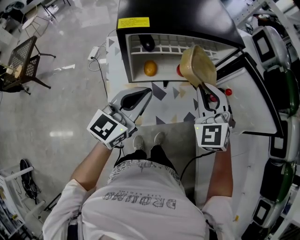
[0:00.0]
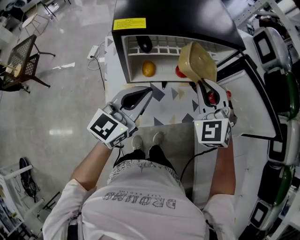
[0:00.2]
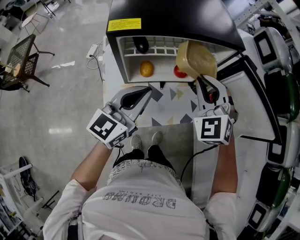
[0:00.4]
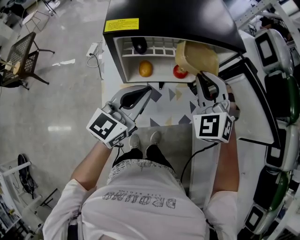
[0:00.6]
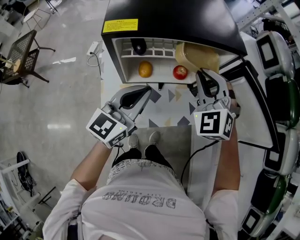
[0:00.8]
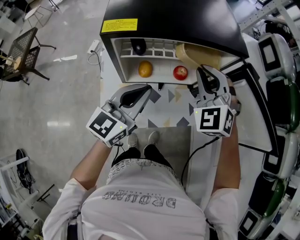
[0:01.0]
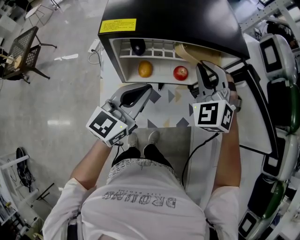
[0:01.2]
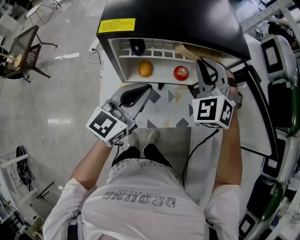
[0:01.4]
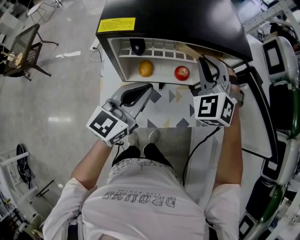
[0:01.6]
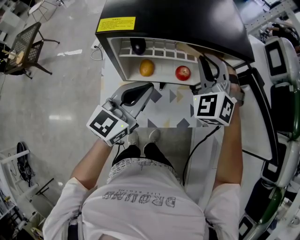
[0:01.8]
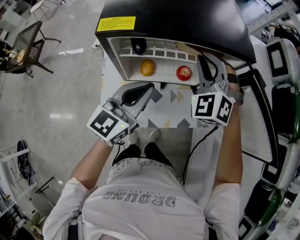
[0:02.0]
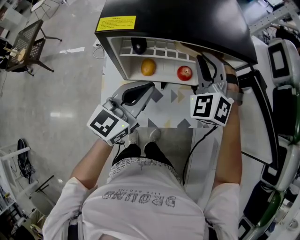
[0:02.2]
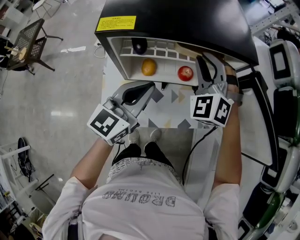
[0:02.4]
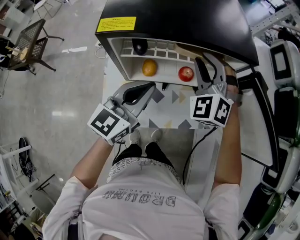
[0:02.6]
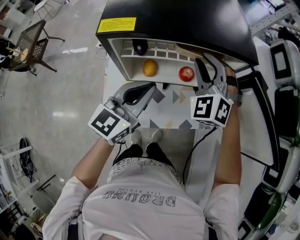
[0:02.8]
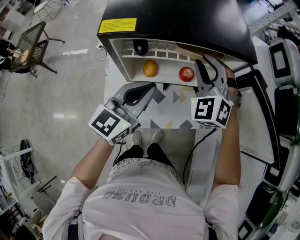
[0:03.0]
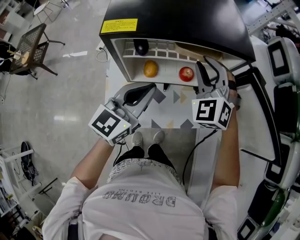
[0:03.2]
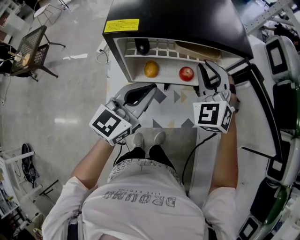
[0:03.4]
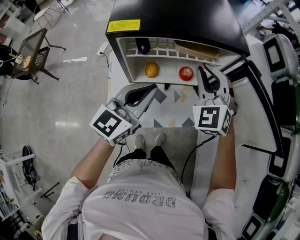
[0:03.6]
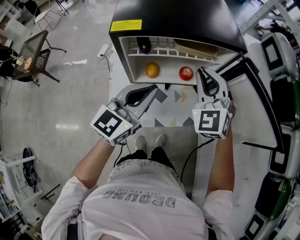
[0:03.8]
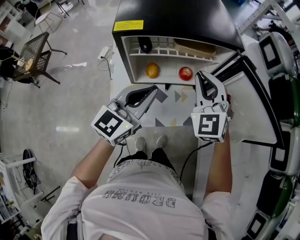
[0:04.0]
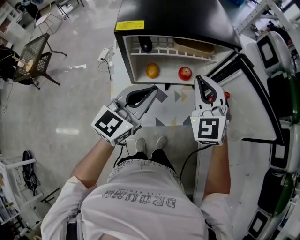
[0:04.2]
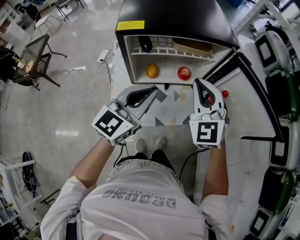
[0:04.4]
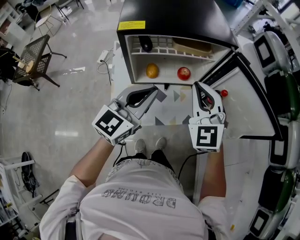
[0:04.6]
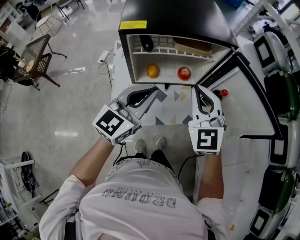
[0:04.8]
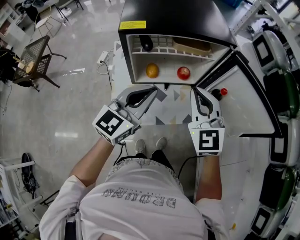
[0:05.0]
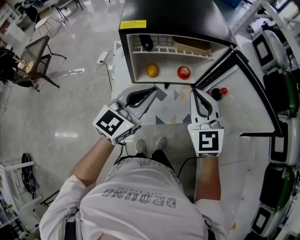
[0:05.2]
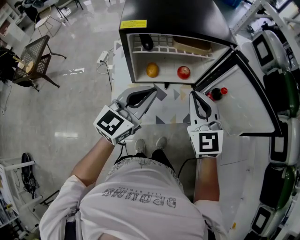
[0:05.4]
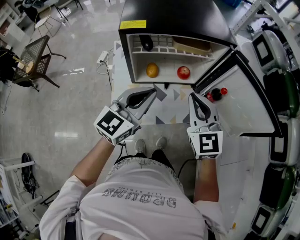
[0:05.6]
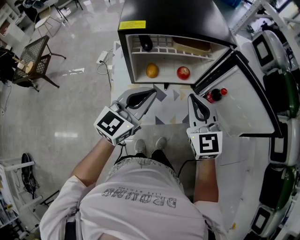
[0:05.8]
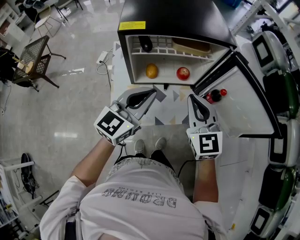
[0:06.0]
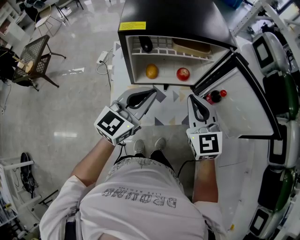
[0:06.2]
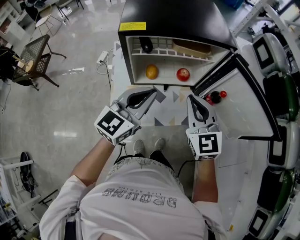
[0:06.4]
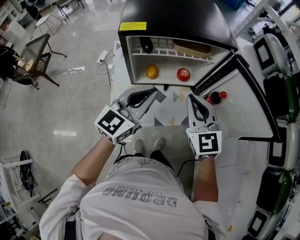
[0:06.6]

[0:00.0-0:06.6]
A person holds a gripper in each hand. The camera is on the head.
0:00.0 to 0:01.6: The left gripper heads forward, covering roughly 5 cm. Meanwhile the right gripper goes some 15 cm forward.
0:01.6 to 0:03.2: The grippers move only a little.
0:03.2 to 0:05.0: The left gripper goes approximately 10 cm backward, while the right gripper travels backward by some 15 cm, turns by roughly 30 degrees, and closes.
0:05.0 to 0:06.6: The grippers make only small movements.

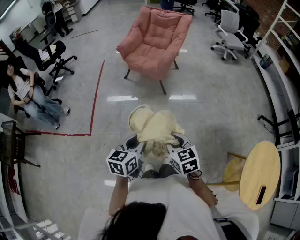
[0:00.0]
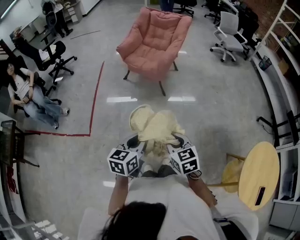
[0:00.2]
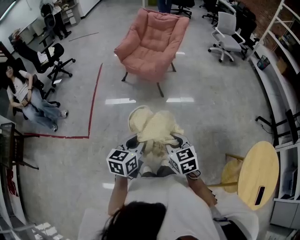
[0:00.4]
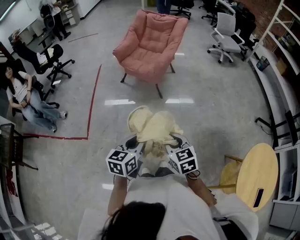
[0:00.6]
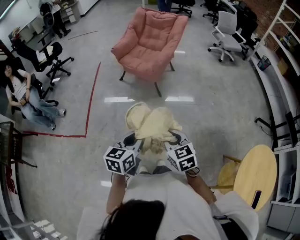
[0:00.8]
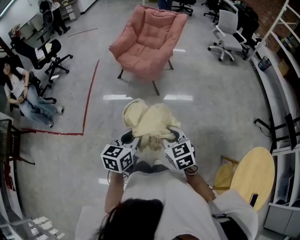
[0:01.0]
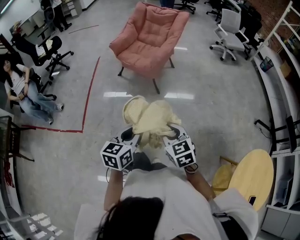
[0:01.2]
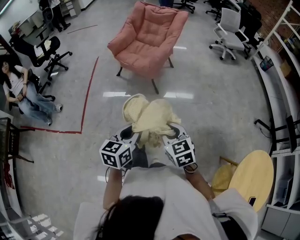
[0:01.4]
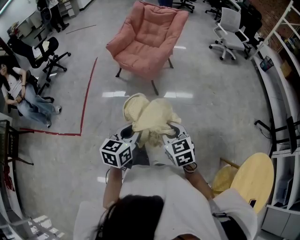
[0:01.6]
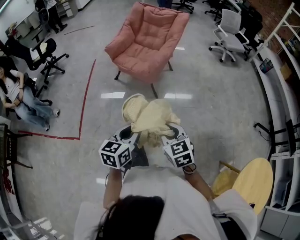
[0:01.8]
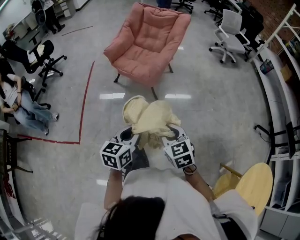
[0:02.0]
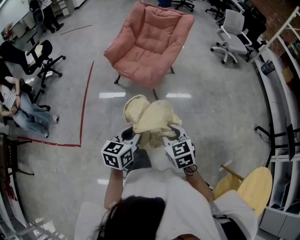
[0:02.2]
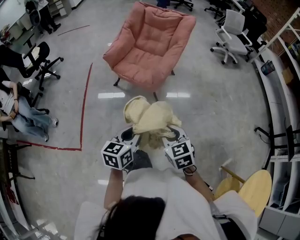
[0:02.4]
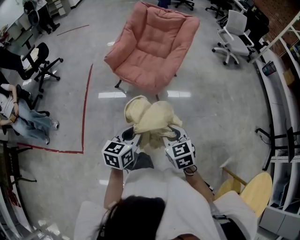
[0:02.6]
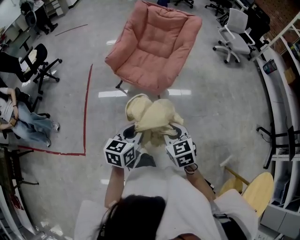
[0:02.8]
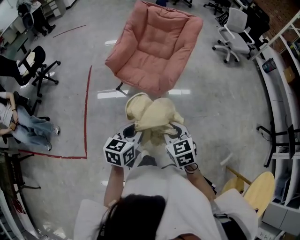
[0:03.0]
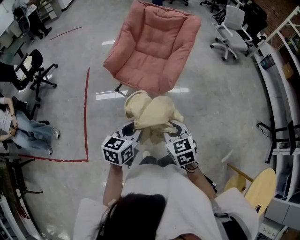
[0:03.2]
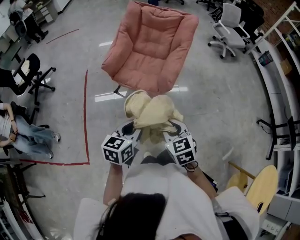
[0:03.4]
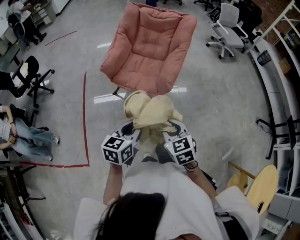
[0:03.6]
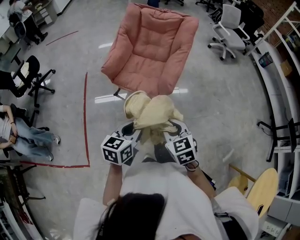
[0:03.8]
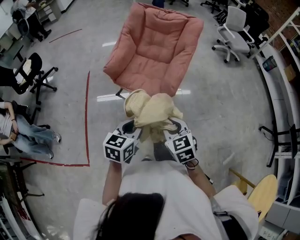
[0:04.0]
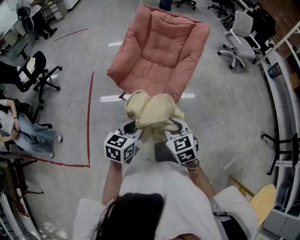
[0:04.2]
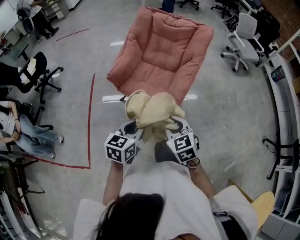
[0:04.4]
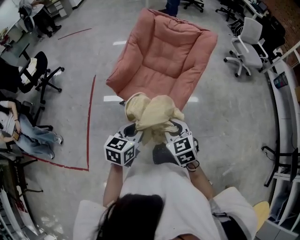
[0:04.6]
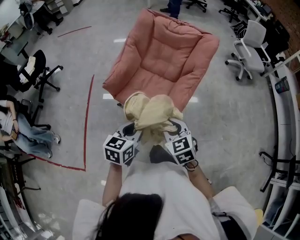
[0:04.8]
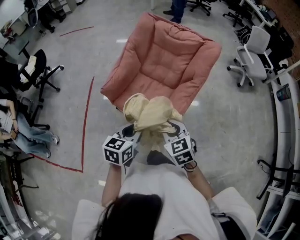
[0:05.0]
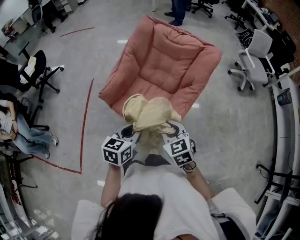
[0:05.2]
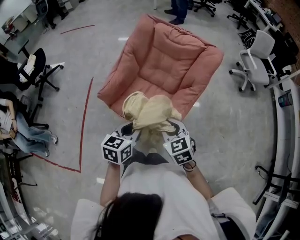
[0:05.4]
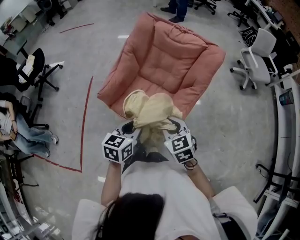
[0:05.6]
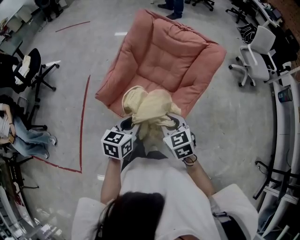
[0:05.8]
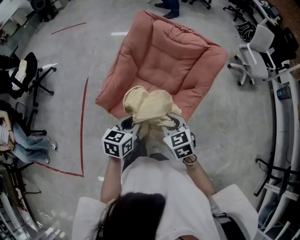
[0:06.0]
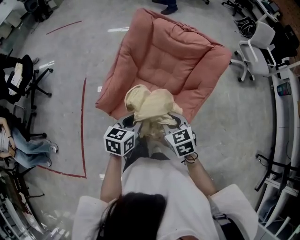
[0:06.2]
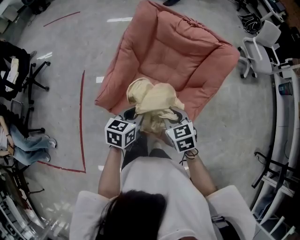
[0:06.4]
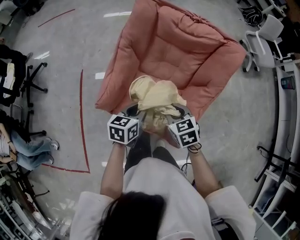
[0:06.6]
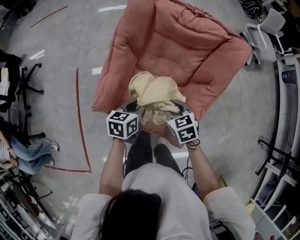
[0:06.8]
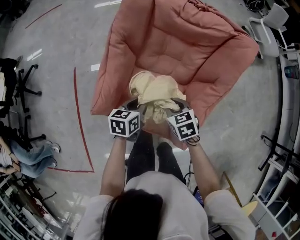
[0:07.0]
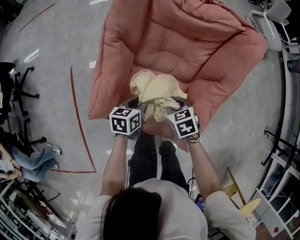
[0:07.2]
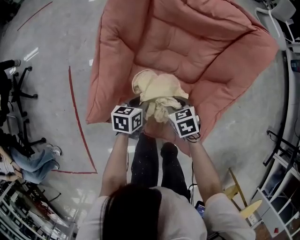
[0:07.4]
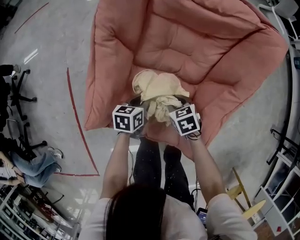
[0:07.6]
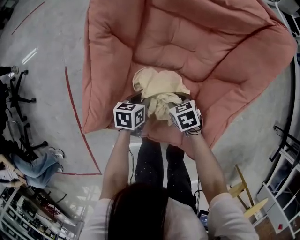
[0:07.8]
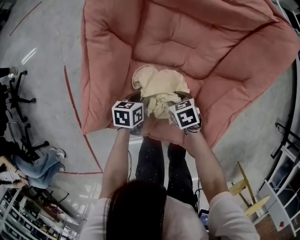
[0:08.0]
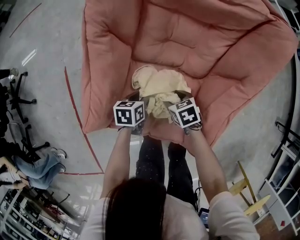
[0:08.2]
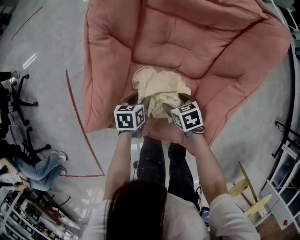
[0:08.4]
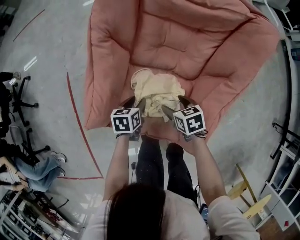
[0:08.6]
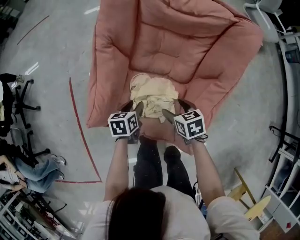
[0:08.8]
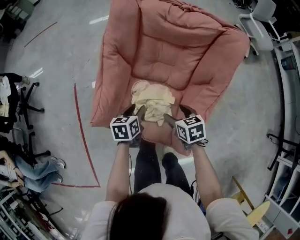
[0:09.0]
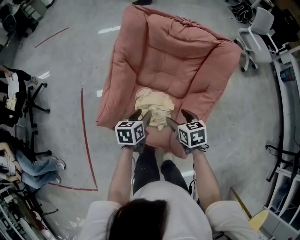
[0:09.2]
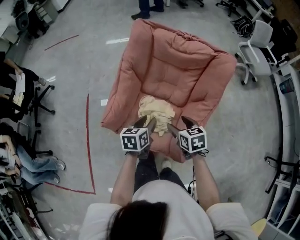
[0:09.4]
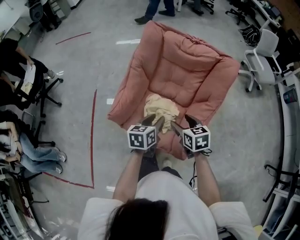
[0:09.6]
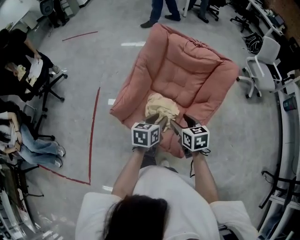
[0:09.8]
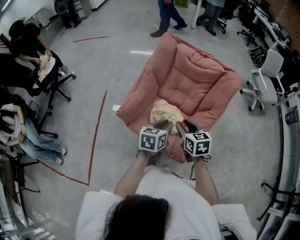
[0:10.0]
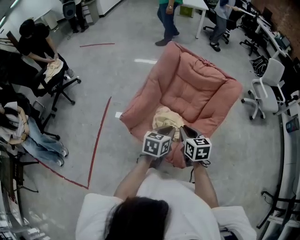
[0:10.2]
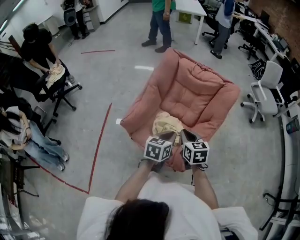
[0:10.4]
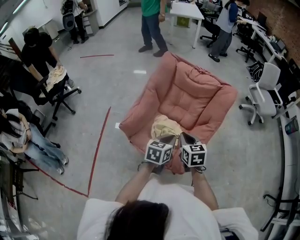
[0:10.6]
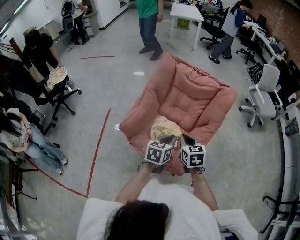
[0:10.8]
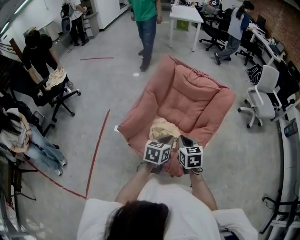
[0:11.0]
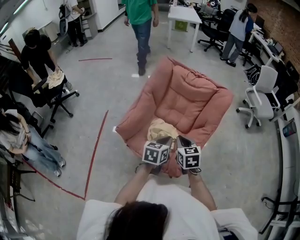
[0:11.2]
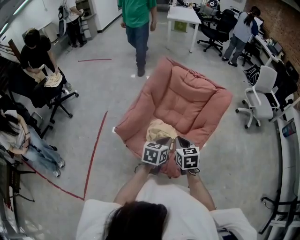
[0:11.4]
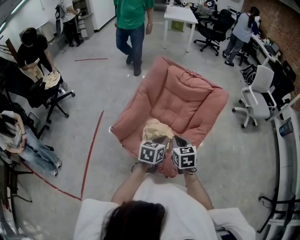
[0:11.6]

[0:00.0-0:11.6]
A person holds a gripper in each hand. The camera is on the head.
0:00.0 to 0:01.4: The right gripper is displaced forward and to the right by about 10 cm, while the left gripper goes about 10 cm to the right and forward.
0:01.4 to 0:02.8: Both grippers travel together forward and to the left, approximately 30 cm.
0:02.8 to 0:04.4: The two grippers go some 20 cm forward.
0:04.4 to 0:05.8: The grippers both shift forward by approximately 25 cm.
0:05.8 to 0:07.2: Both grippers move downward and forward, approximately 35 cm. The left gripper changes its angle by roughly 20 degrees. The right gripper rotates approximately 30 degrees.
0:07.2 to 0:08.8: The right gripper travels downward and back again, roughly 15 cm each way, and opens. The left gripper reaches some 15 cm downward, then returns, and opens.
0:08.8 to 0:10.2: The grippers both shift upward and backward by about 30 cm. The left gripper rotates about 20 degrees, and closes, while the right gripper swivels approximately 30 degrees, and closes.
0:10.2 to 0:11.6: The grippers move only a little.

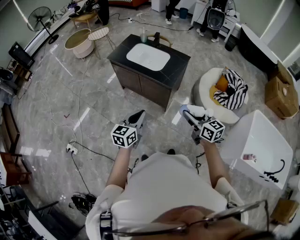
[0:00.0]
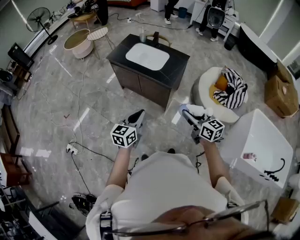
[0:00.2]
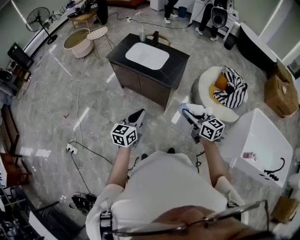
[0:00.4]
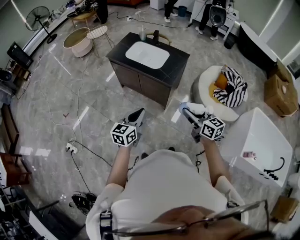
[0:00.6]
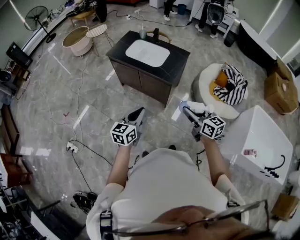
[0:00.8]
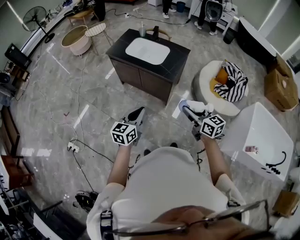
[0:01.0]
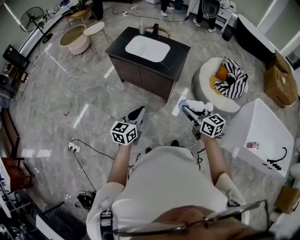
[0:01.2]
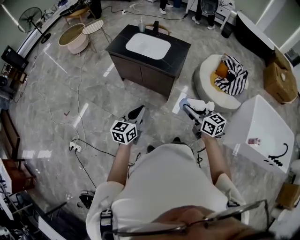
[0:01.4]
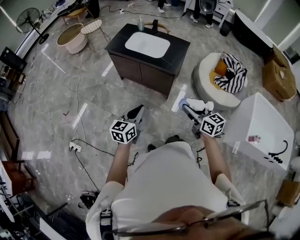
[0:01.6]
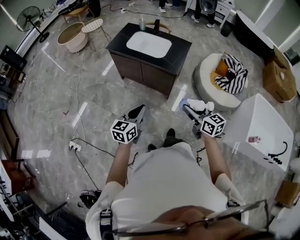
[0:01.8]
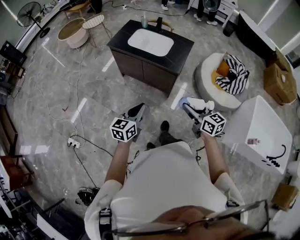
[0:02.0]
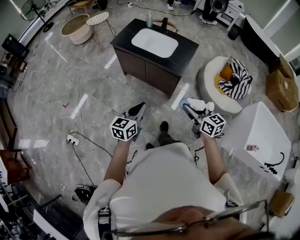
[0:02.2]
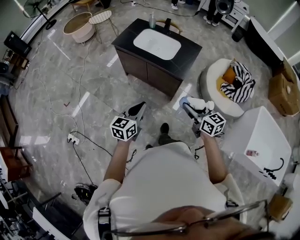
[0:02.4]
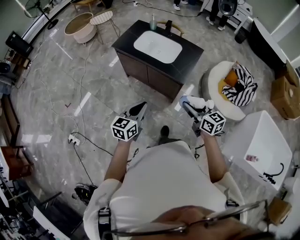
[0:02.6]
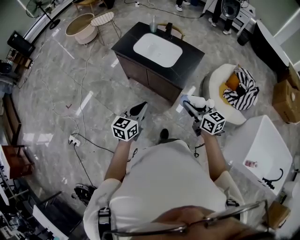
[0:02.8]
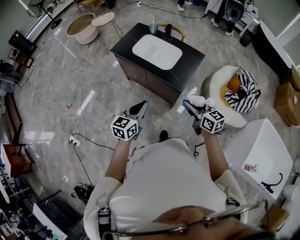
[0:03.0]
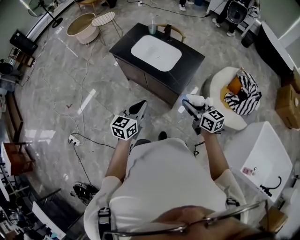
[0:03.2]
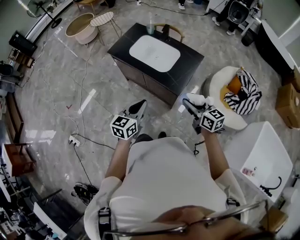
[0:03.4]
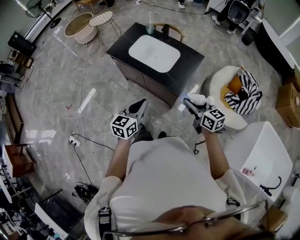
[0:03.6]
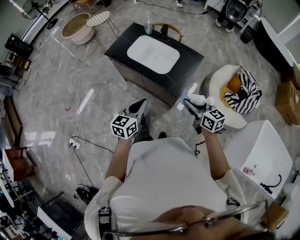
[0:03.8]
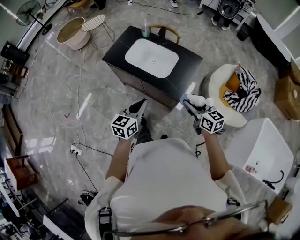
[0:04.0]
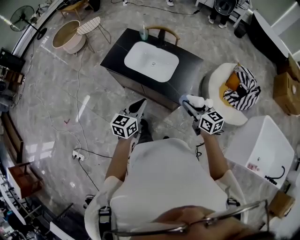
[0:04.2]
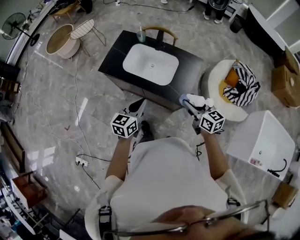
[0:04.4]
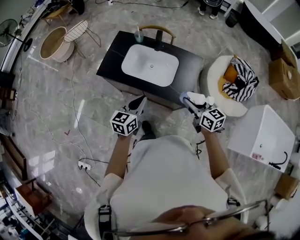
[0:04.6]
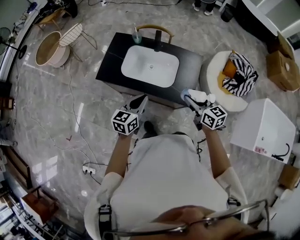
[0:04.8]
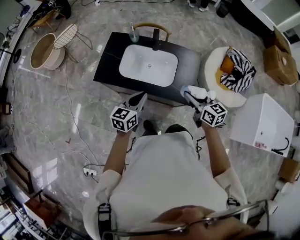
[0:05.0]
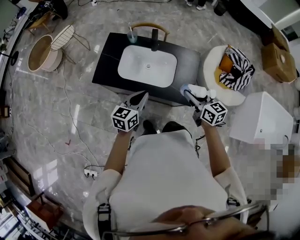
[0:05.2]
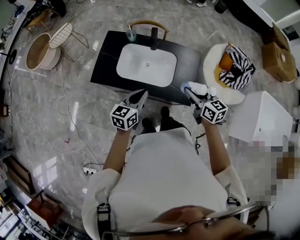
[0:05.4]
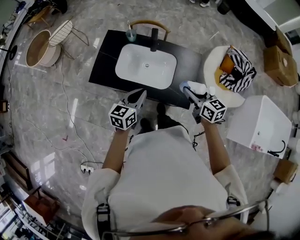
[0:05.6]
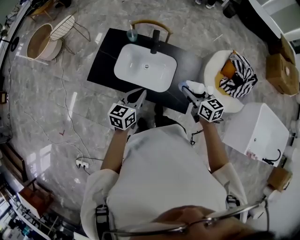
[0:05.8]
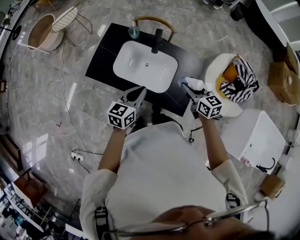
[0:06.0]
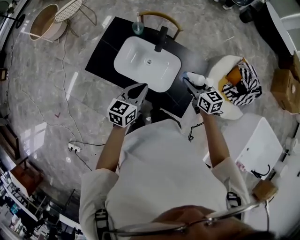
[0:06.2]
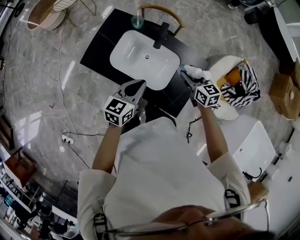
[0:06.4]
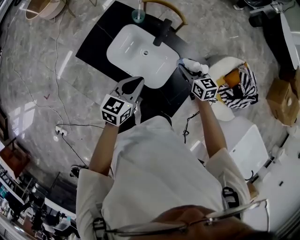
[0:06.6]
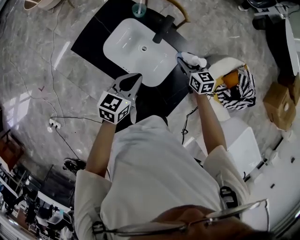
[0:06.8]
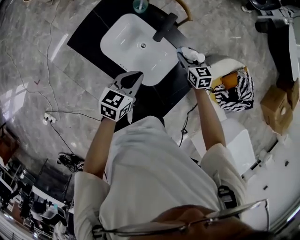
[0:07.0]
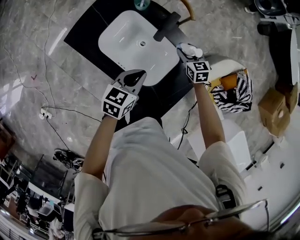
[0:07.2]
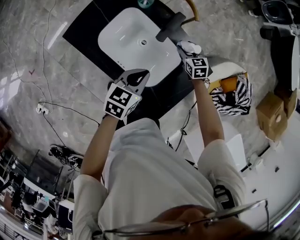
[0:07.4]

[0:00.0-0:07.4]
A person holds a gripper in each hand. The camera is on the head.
0:00.0 to 0:01.4: The two grippers go roughly 5 cm to the left.
0:01.4 to 0:03.0: Both grippers move forward, roughly 20 cm.
0:03.0 to 0:04.4: Both grippers travel together forward, about 20 cm.
0:04.4 to 0:06.0: The grippers both shift forward by roughly 20 cm.
0:06.0 to 0:07.4: The left gripper moves downward, forward and to the right, about 15 cm, while the right gripper shifts approximately 35 cm downward and forward, and changes its angle by roughly 30 degrees.
